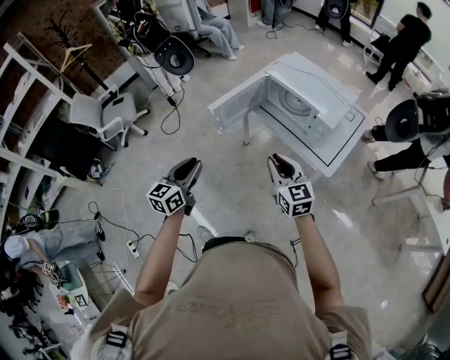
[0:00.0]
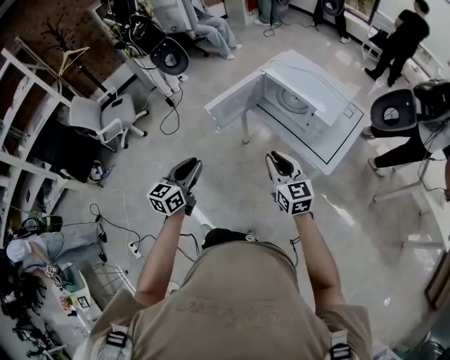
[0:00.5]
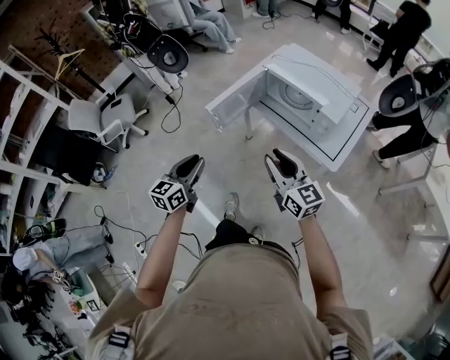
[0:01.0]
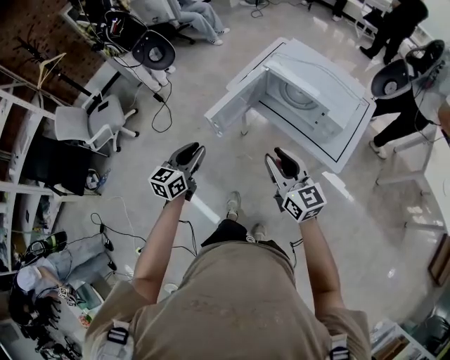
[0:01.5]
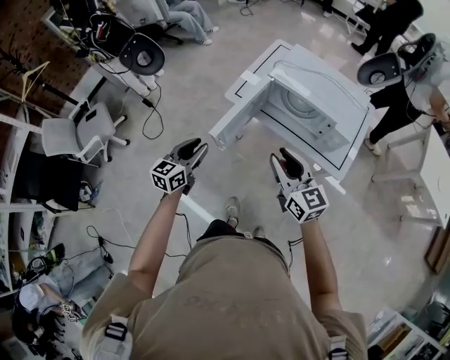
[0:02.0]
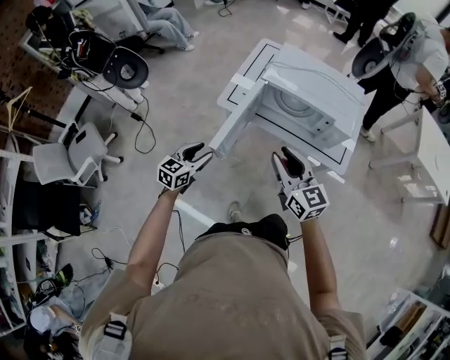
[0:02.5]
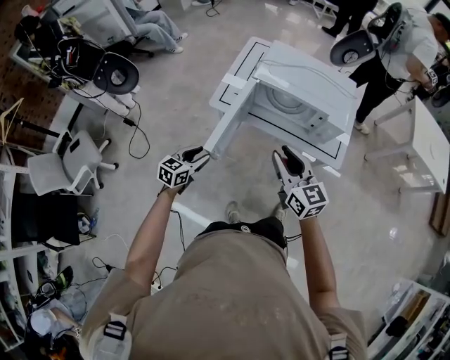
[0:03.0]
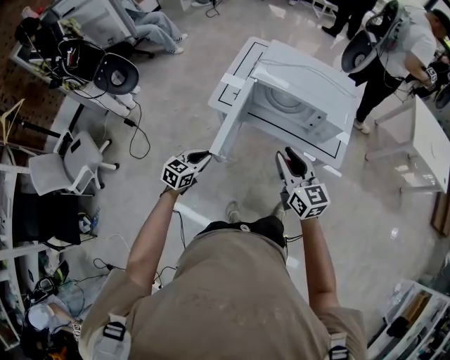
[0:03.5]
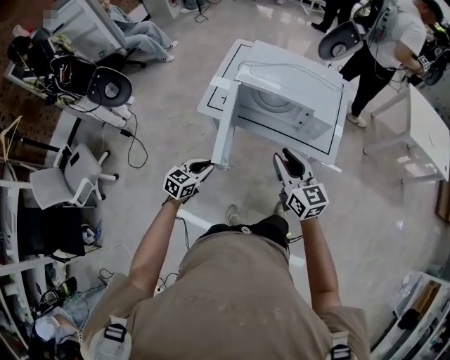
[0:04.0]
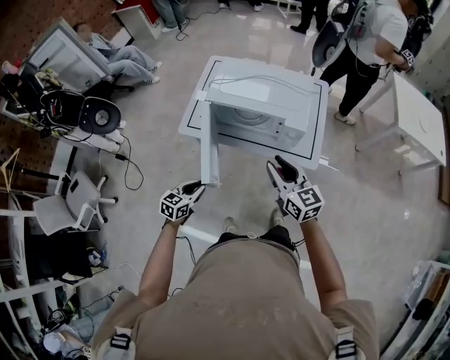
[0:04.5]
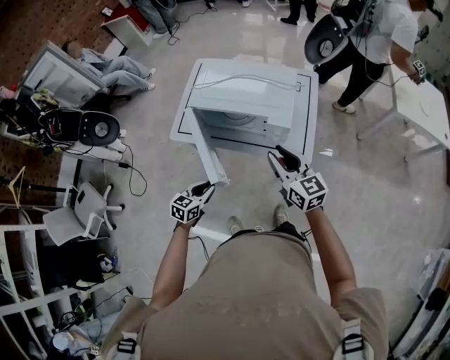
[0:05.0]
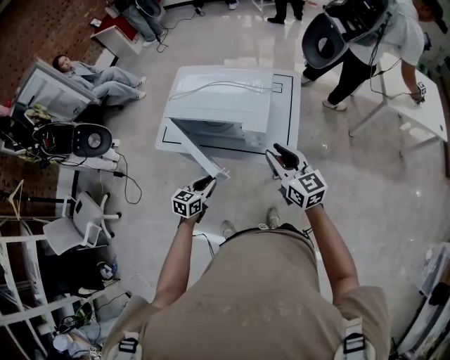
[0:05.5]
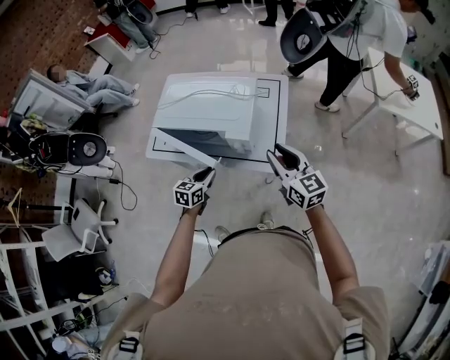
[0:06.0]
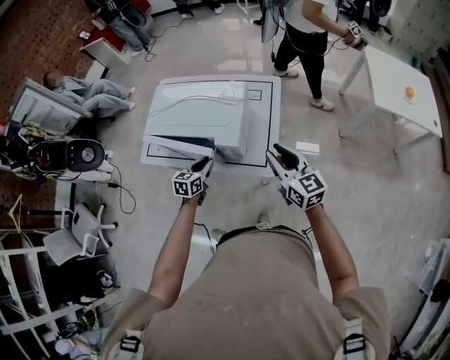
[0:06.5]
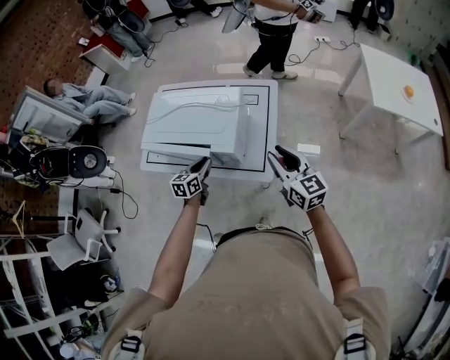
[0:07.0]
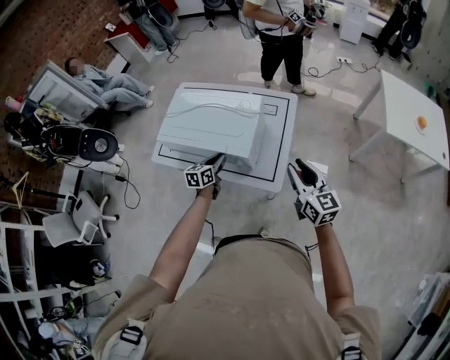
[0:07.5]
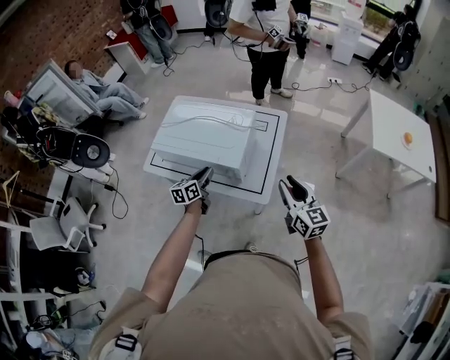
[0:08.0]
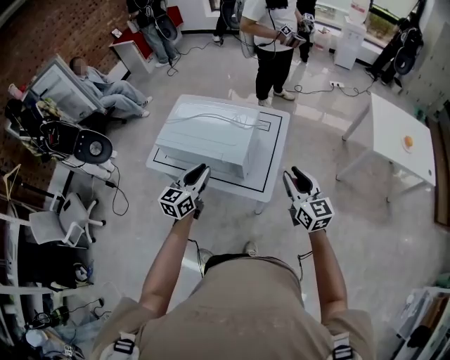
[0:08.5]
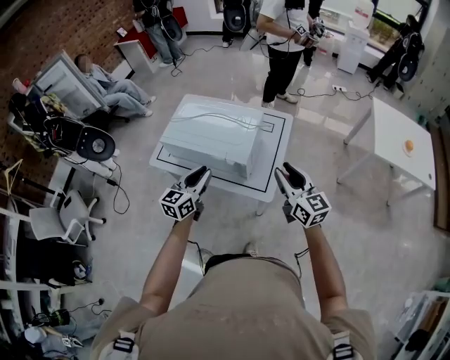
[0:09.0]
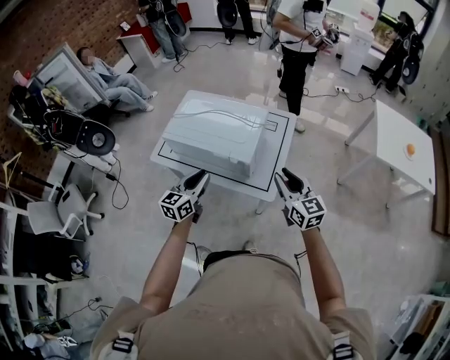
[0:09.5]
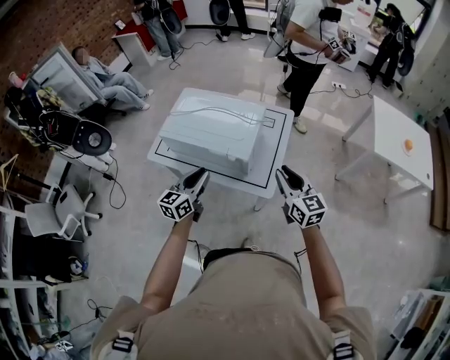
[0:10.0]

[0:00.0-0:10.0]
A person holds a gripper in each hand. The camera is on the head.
0.0 to 2.0 s: The left gripper is displaced forward by some 25 cm. The right gripper goes roughly 15 cm forward.
2.0 to 4.0 s: The left gripper shifts approximately 15 cm downward and to the right, and rotates about 30 degrees; the right gripper heads to the right, covering approximately 5 cm.
4.0 to 6.0 s: The left gripper is displaced to the right and forward by some 35 cm. The right gripper moves to the right, roughly 30 cm.
6.0 to 8.0 s: The left gripper travels forward by approximately 10 cm, and changes its angle by some 30 degrees; the right gripper is displaced to the right by some 10 cm.
8.0 to 10.0 s: The right gripper moves to the left, approximately 5 cm; the left gripper shifts roughly 15 cm upward and backward.

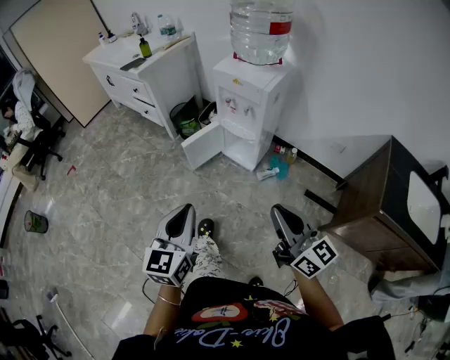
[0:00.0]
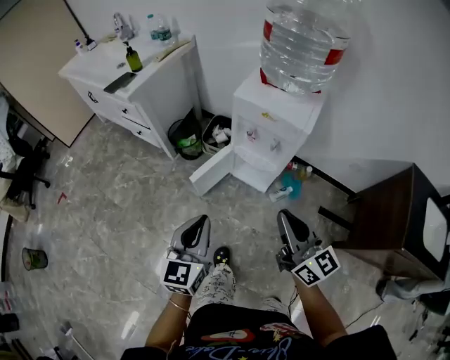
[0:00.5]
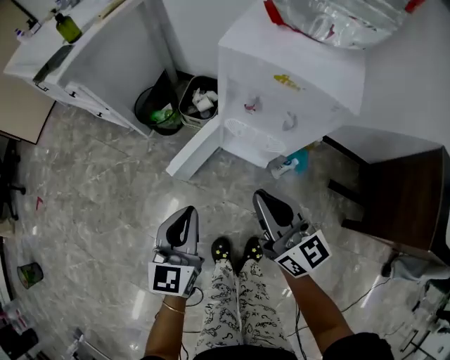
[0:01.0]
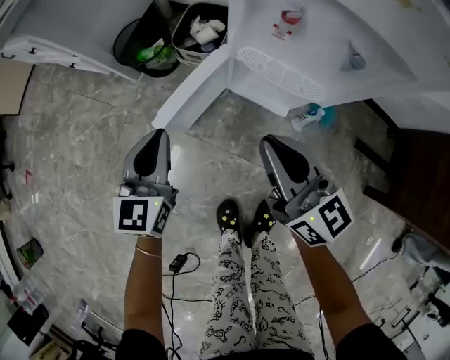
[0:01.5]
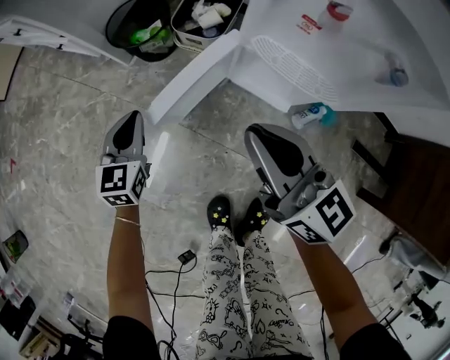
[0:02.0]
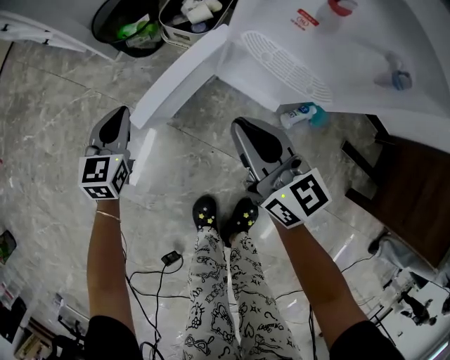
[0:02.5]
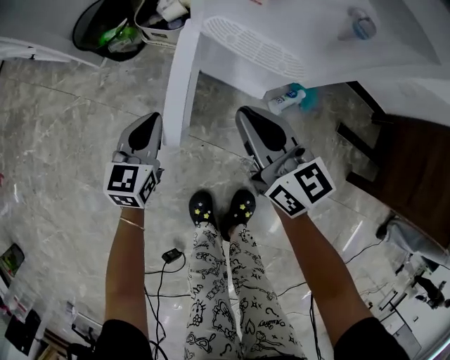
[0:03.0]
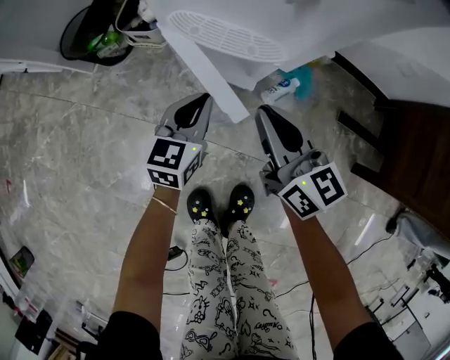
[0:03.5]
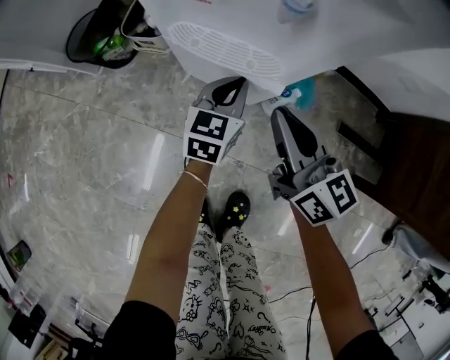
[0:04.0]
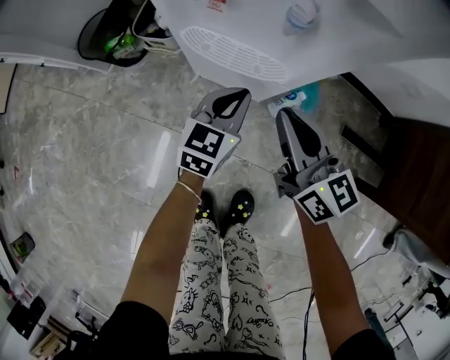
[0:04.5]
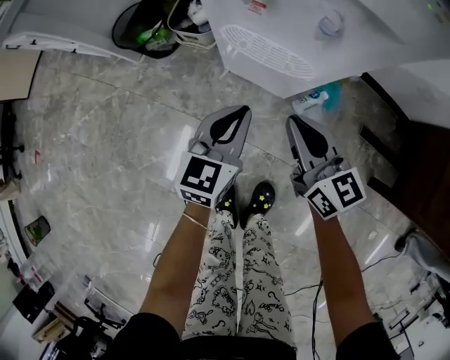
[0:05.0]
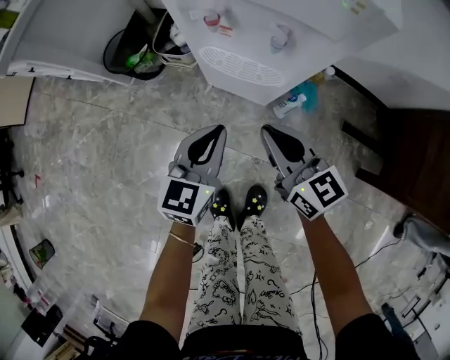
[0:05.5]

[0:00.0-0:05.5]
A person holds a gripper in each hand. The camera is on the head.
0.0 to 2.0 s: The two grippers travel together, forward, about 50 cm. The grippers both shift downward by some 40 cm. The left gripper swivels approximately 20 degrees.
2.0 to 3.5 s: The right gripper moves to the right and downward, roughly 20 cm; the left gripper shifts about 30 cm to the right, and turns by about 30 degrees.
3.5 to 5.5 s: The left gripper goes some 20 cm upward, while the right gripper shifts some 10 cm upward.

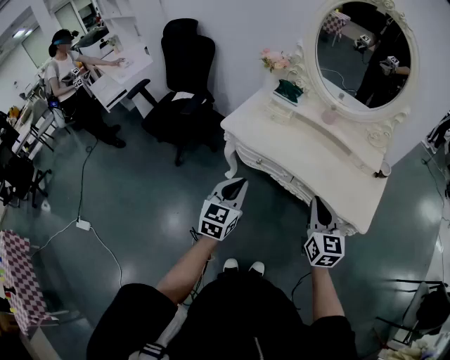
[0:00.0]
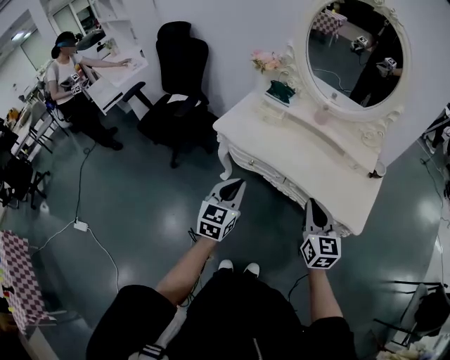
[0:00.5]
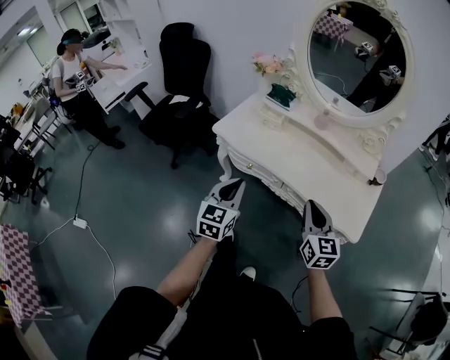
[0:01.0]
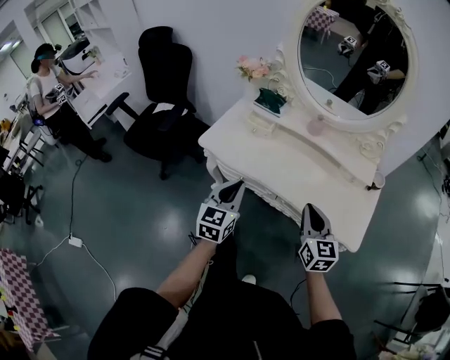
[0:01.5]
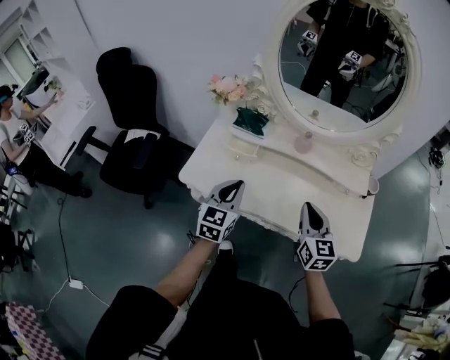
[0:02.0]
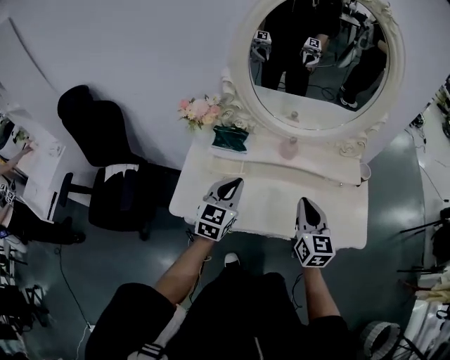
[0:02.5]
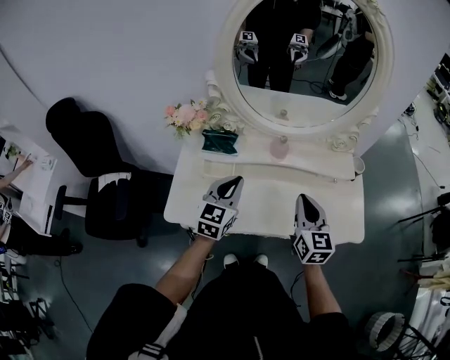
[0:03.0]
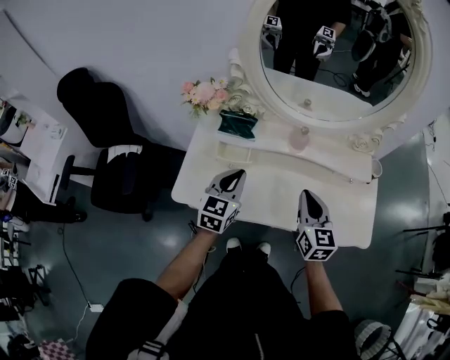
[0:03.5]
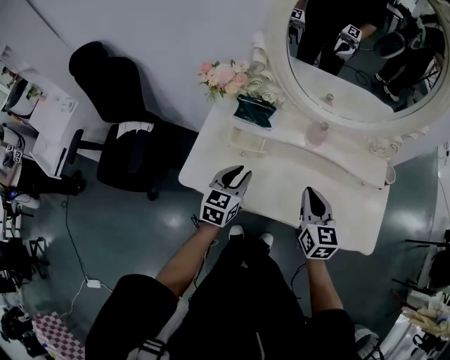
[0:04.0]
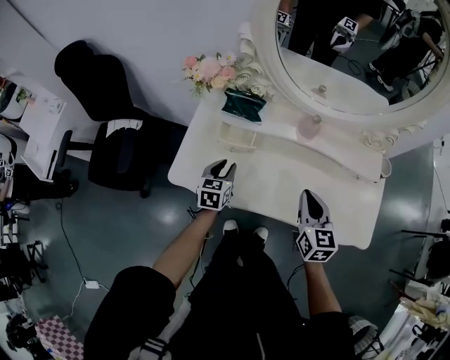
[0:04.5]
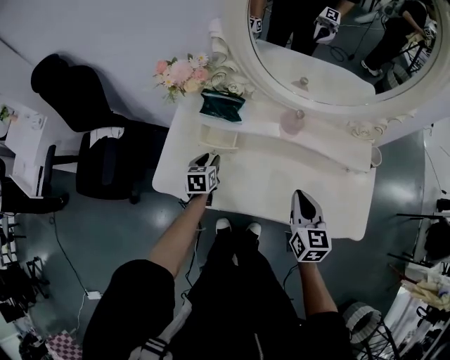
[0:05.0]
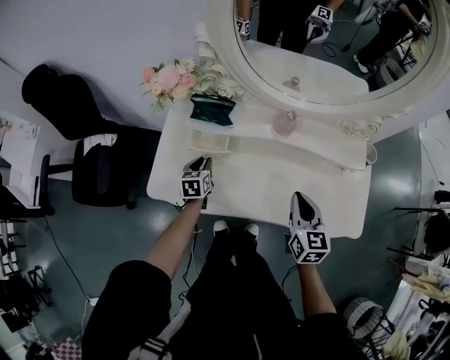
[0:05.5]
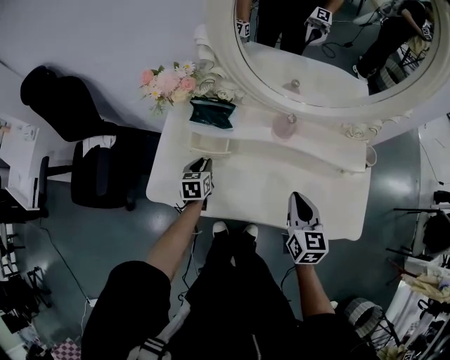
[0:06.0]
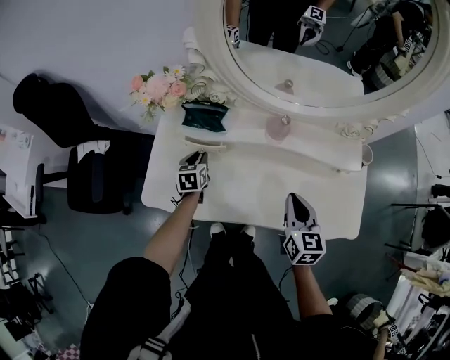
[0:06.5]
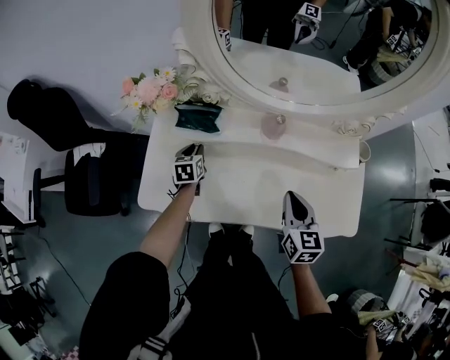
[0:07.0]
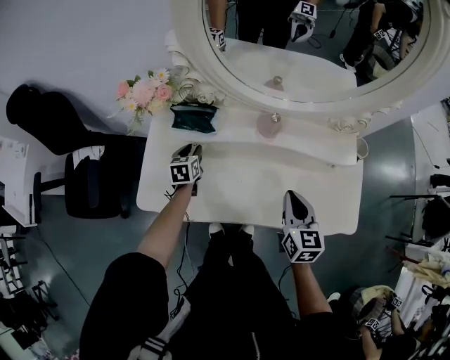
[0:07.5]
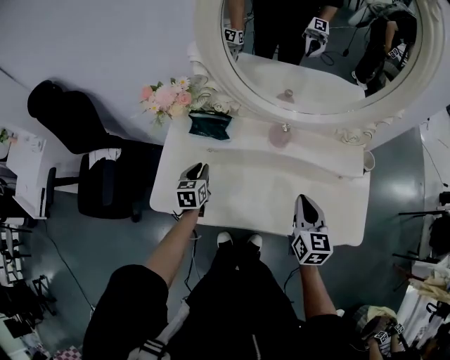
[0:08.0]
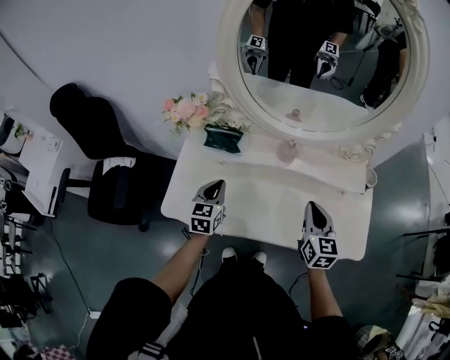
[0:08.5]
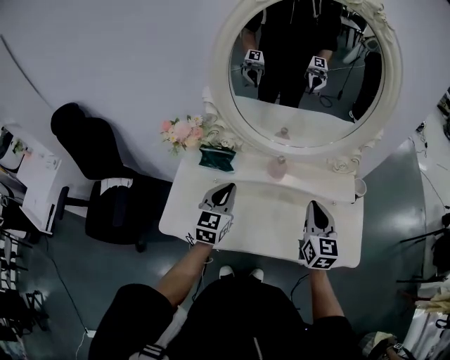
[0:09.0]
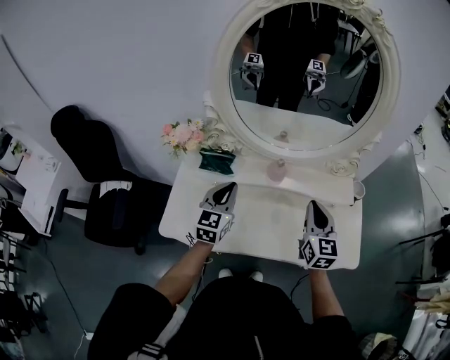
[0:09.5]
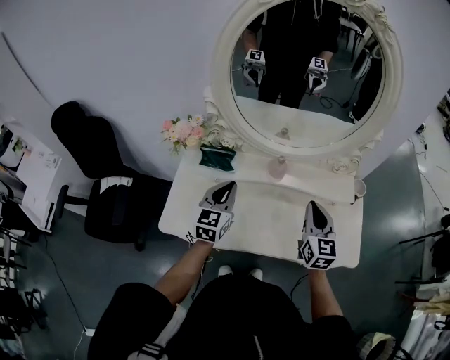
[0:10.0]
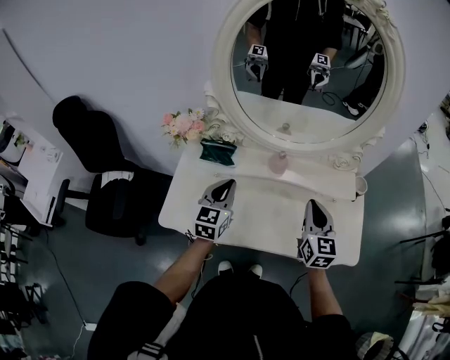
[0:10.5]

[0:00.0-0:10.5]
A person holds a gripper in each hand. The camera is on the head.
0.0 to 2.0 s: Both grippers move forward, roughly 25 cm.
2.0 to 4.0 s: The left gripper shifts about 15 cm forward and downward, and opens its fingers. The right gripper goes some 10 cm forward and to the left.
4.0 to 6.5 s: The left gripper shifts roughly 20 cm downward and forward, and changes its angle by roughly 20 degrees, while the right gripper is displaced to the right by approximately 5 cm.
6.5 to 8.5 s: The right gripper shifts by roughly 5 cm. The left gripper travels upward and backward by roughly 15 cm, swivels some 20 degrees, and closes.
8.5 to 10.5 s: The right gripper travels upward by roughly 5 cm; the left gripper moves upward and to the right, about 10 cm.

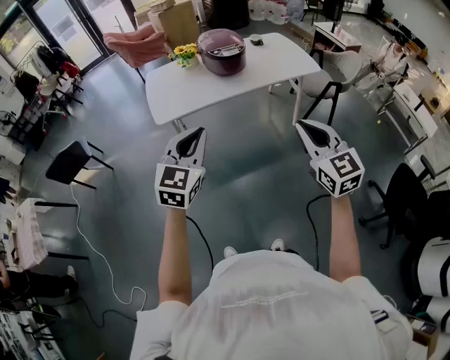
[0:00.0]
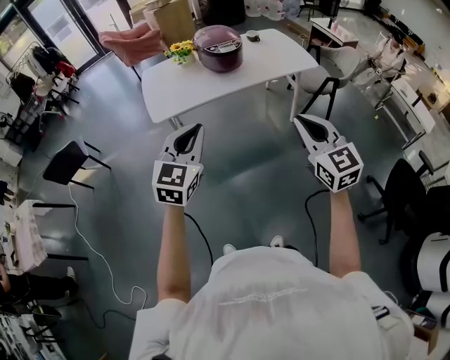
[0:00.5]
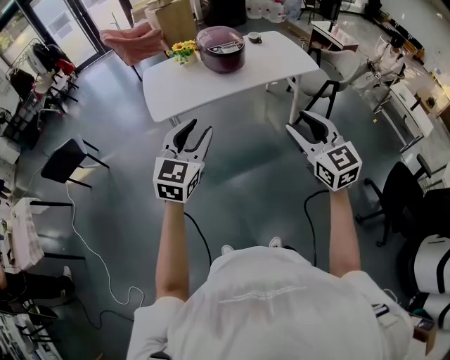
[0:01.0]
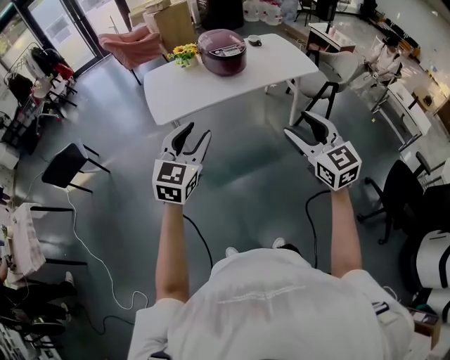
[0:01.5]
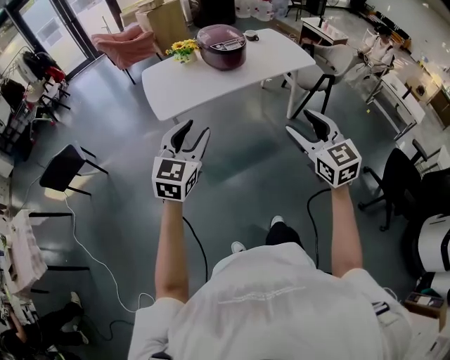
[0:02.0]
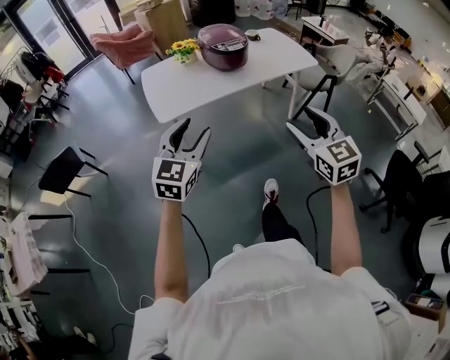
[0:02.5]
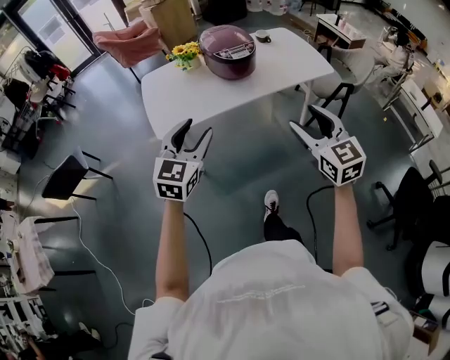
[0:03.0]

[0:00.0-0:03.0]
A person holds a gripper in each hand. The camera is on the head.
0.0 to 1.5 s: The right gripper opens its fingers; the left gripper opens up.
1.5 to 3.0 s: The two grippers go some 15 cm forward.
